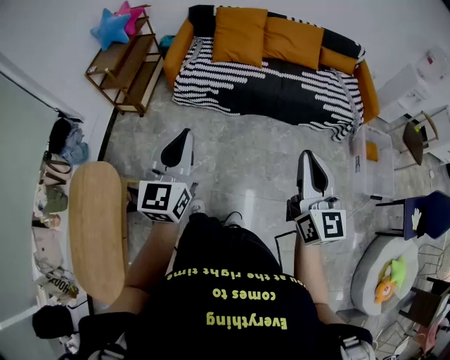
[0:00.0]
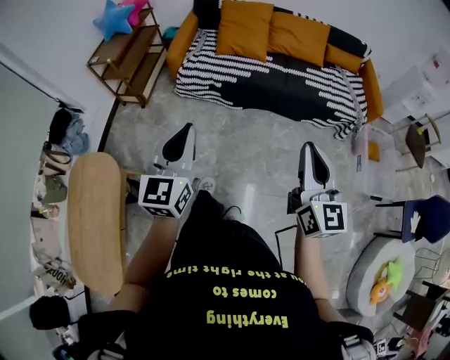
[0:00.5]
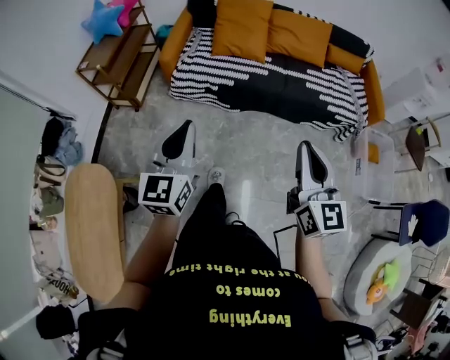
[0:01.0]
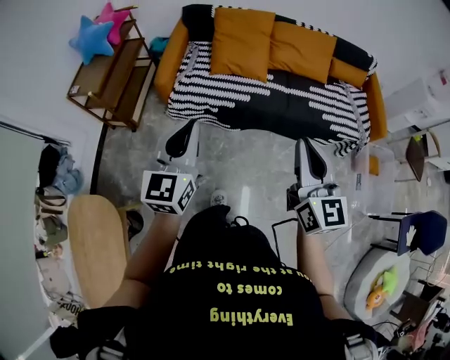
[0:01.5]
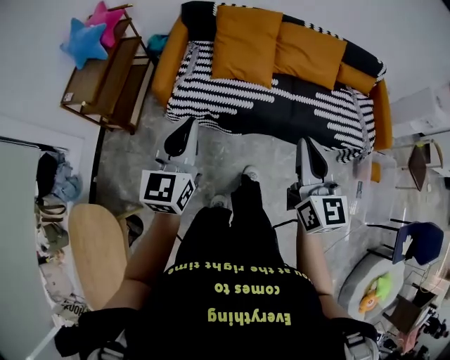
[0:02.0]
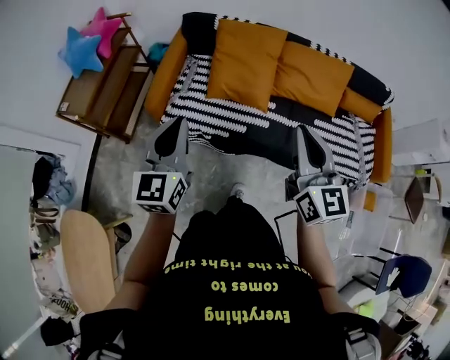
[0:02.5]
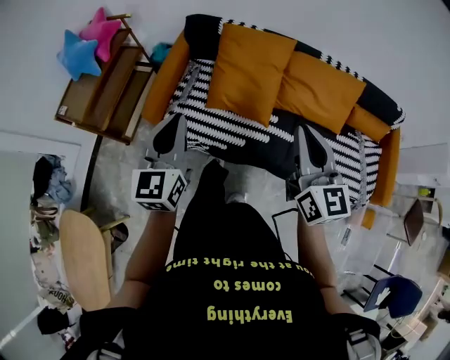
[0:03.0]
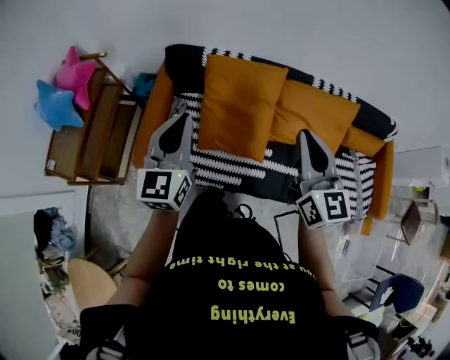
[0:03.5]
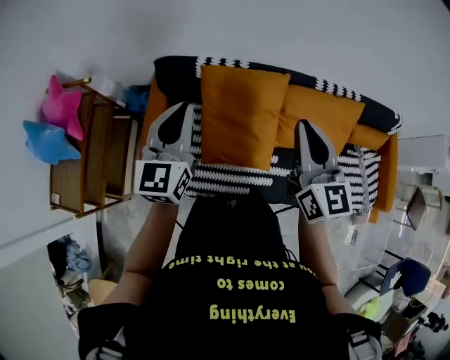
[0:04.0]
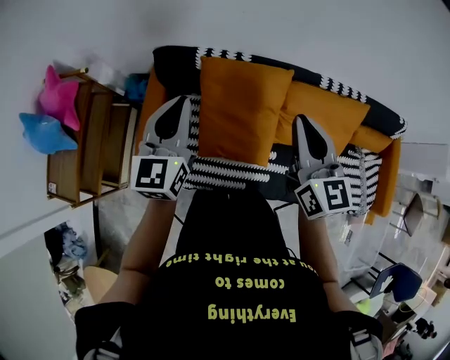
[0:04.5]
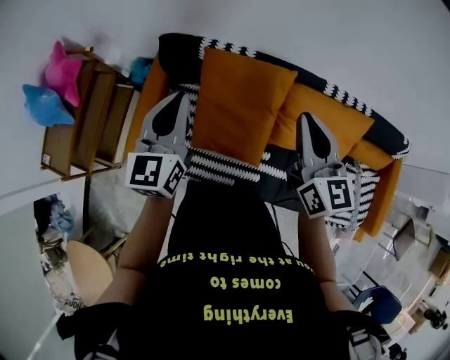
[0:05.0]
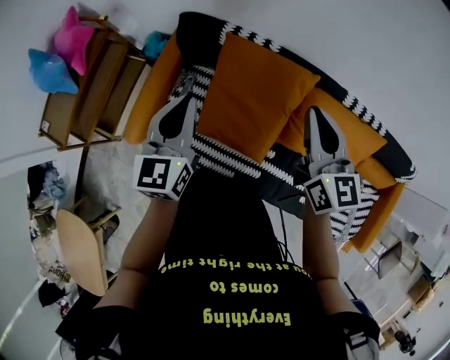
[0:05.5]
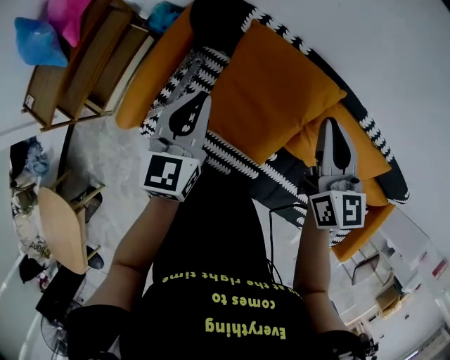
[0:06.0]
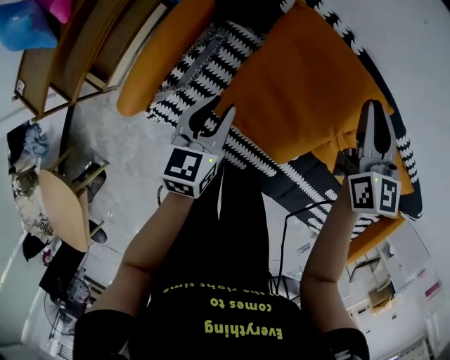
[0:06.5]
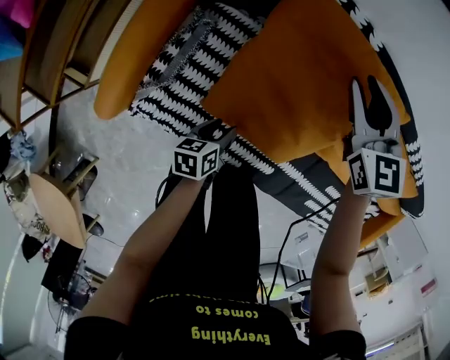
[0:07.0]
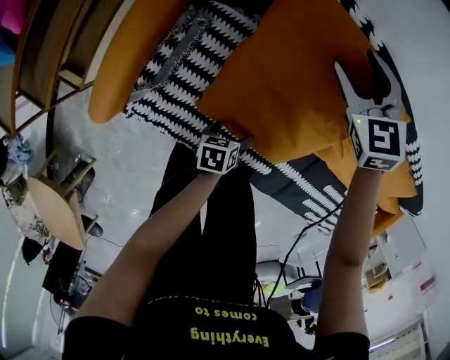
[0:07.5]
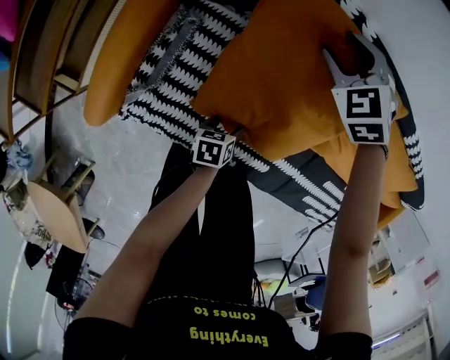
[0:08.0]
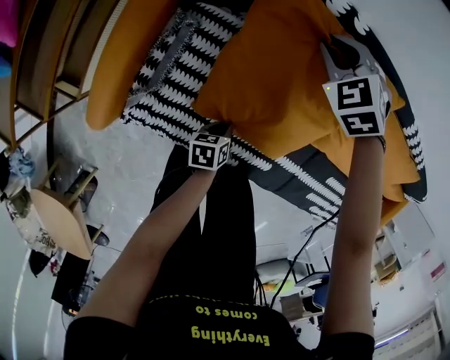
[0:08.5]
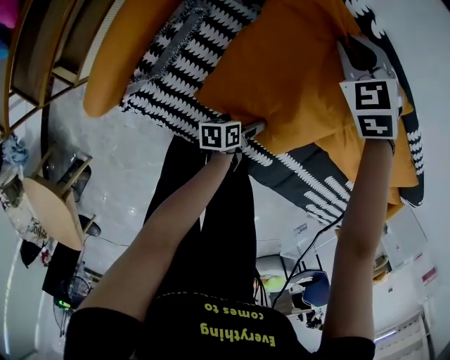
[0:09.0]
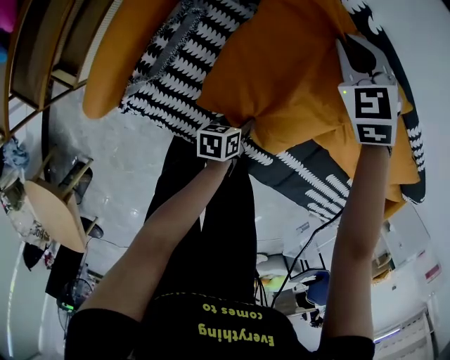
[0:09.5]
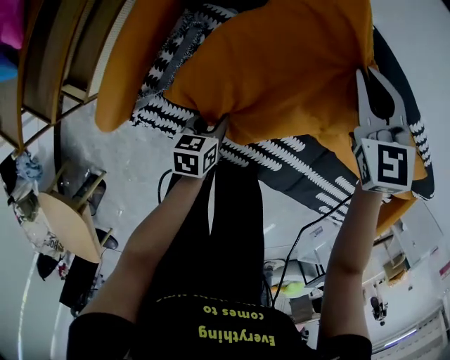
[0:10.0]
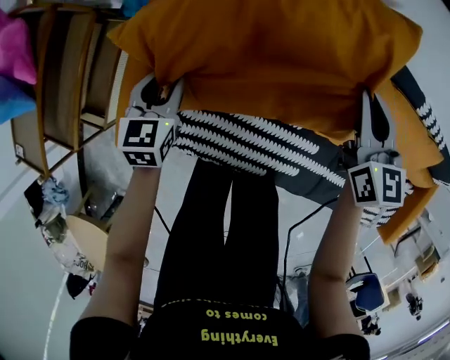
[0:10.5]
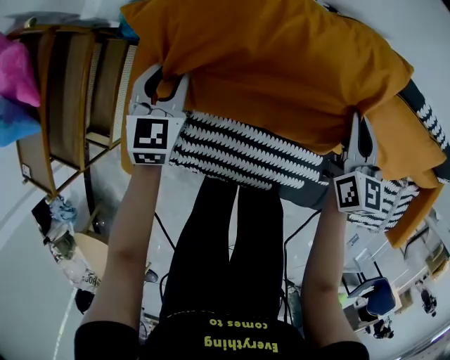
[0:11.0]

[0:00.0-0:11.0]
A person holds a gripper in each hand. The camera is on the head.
0:00.0 to 0:02.0: Both grippers are carried forward, roughly 40 cm.
0:02.0 to 0:03.5: Both grippers are carried forward, about 50 cm.
0:03.5 to 0:05.5: The left gripper goes roughly 15 cm forward and downward, while the right gripper is displaced forward by some 20 cm.
0:05.5 to 0:07.5: The right gripper goes some 40 cm downward and forward, angles its fingers downward, by some 30 degrees, and opens up. The left gripper travels downward by roughly 50 cm, angles its fingers downward, by about 40 degrees, and opens up.
0:07.5 to 0:09.0: The right gripper turns by about 20 degrees, and closes its fingers. The left gripper rotates approximately 20 degrees, and closes, then reopens.
0:09.0 to 0:11.0: The left gripper travels to the left, upward and forward by some 40 cm, rolls clockwise, seen from behind, by approximately 80 degrees, and closes its fingers. The right gripper moves to the right, backward and upward, some 15 cm, and twists approximately 60 degrees clockwise, seen from behind.

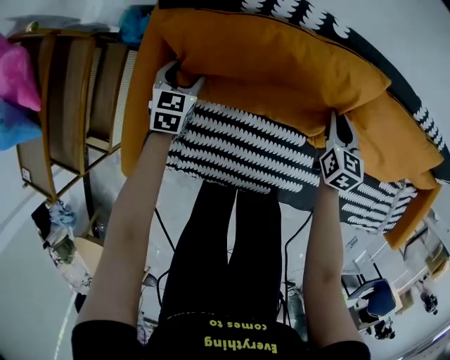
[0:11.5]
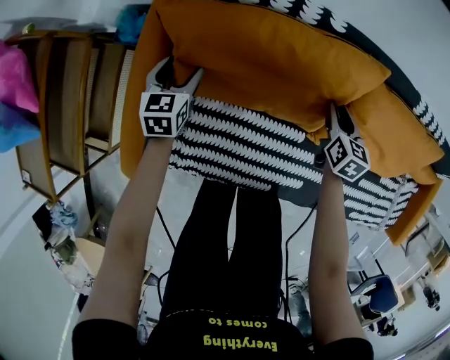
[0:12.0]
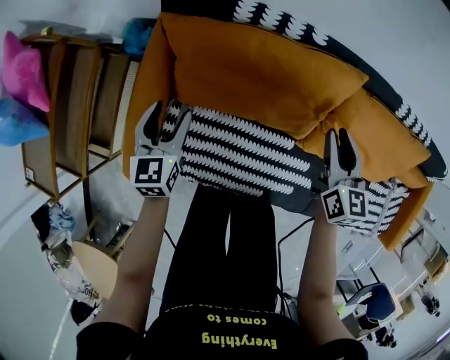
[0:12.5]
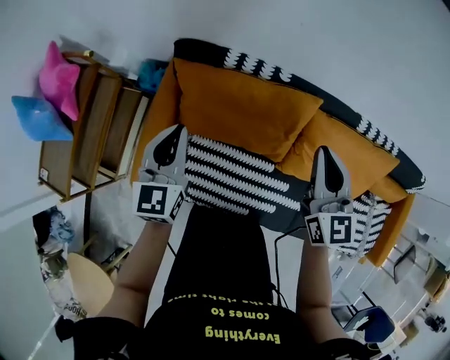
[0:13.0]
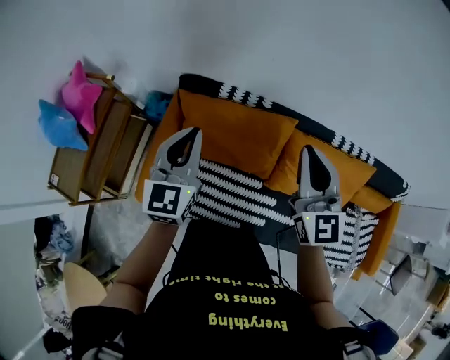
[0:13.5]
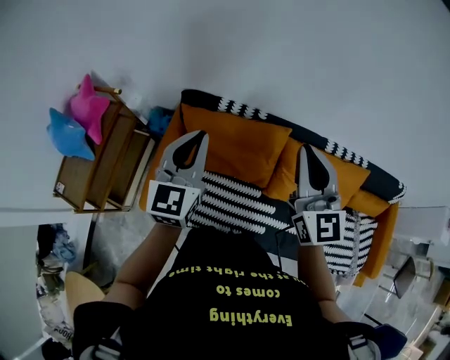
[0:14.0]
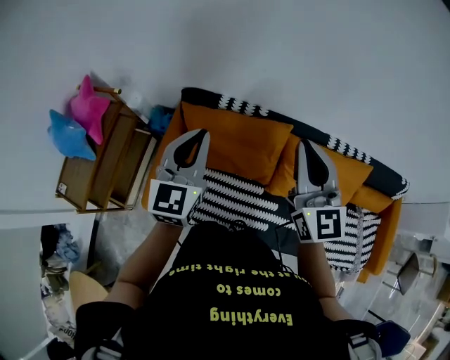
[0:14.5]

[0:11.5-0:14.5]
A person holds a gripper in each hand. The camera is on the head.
0:11.5 to 0:13.0: Both grippers move upward, about 35 cm. The right gripper swivels roughly 30 degrees. The left gripper changes its angle by roughly 30 degrees, and closes.
0:13.0 to 0:14.5: The two grippers go approximately 20 cm upward.

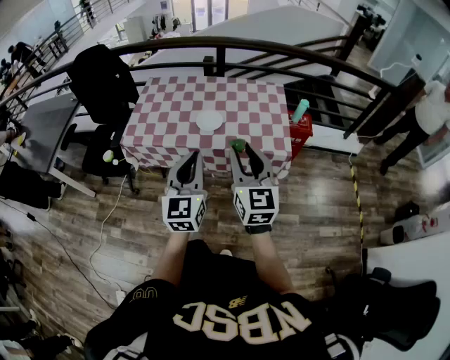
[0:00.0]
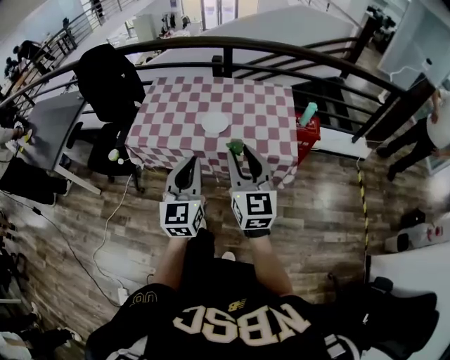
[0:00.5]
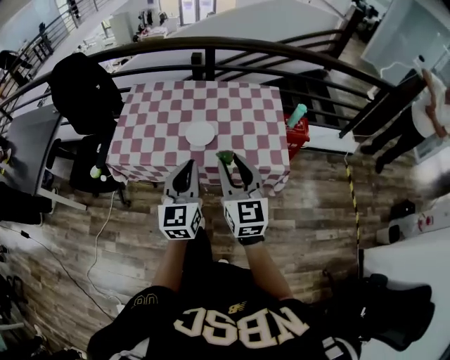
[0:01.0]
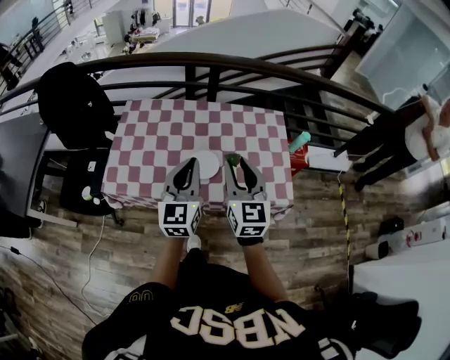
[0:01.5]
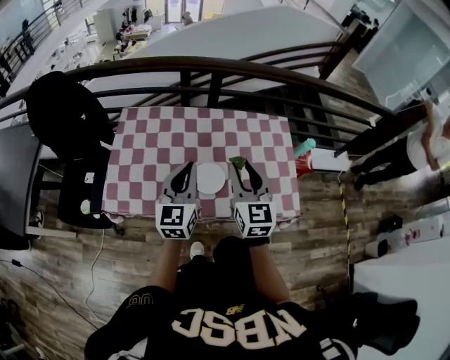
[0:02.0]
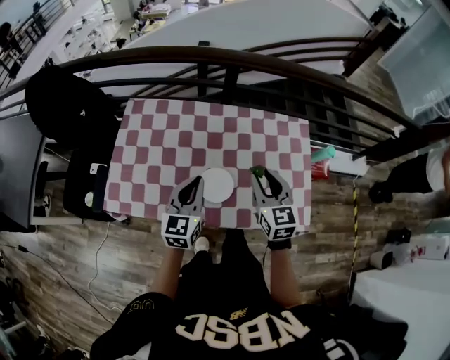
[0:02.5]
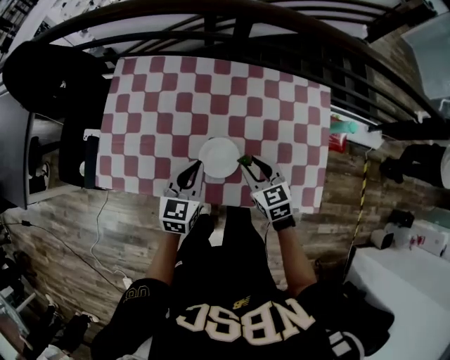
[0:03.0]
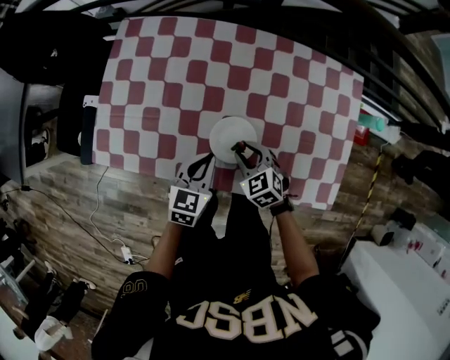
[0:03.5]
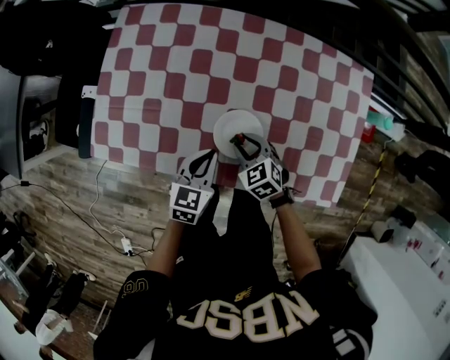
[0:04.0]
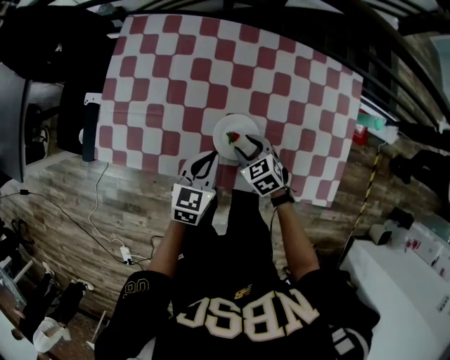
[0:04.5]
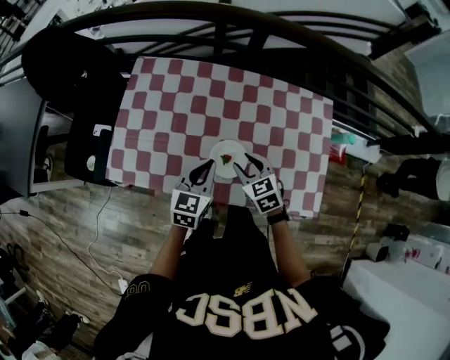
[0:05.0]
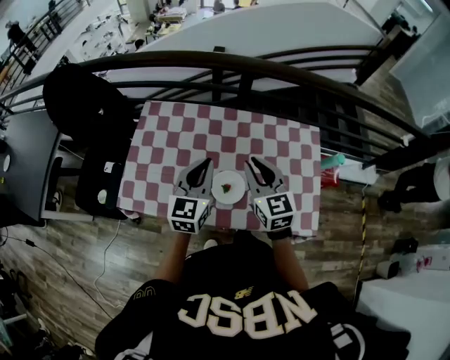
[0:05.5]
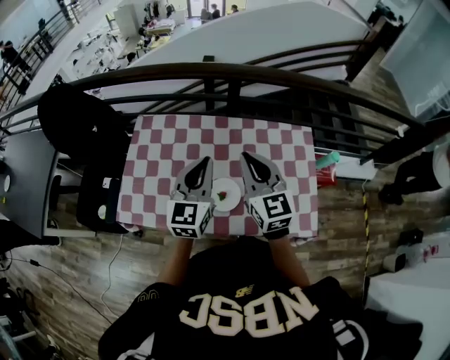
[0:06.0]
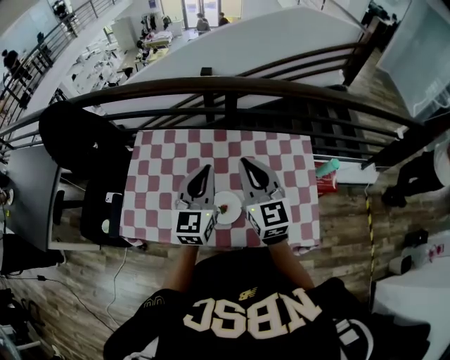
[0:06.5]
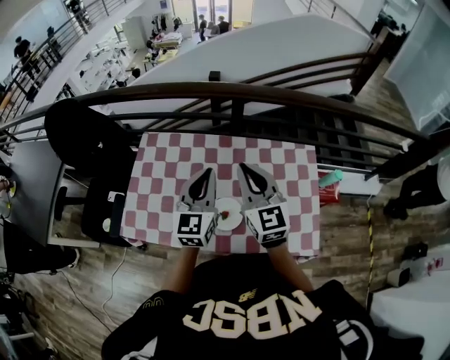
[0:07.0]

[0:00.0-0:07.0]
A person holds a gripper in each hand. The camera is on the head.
0:00.0 to 0:02.0: Both grippers travel together forward, approximately 35 cm.
0:02.0 to 0:03.5: The two grippers go roughly 30 cm downward. The left gripper tilts its fingers roughly 30 degrees downward, while the right gripper angles its fingers downward, by roughly 40 degrees.
0:03.5 to 0:05.0: Both grippers travel together upward, about 10 cm.
0:05.0 to 0:07.0: The left gripper goes approximately 20 cm upward and forward, and changes its angle by some 20 degrees, while the right gripper heads upward, covering approximately 30 cm, tilts its fingers about 40 degrees upward, and closes its fingers.

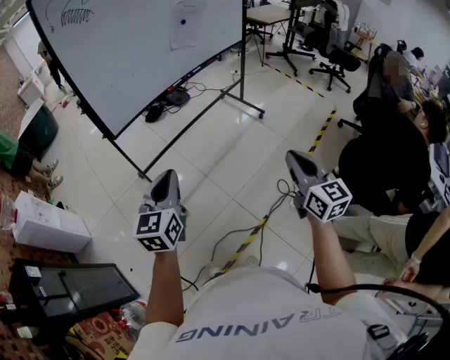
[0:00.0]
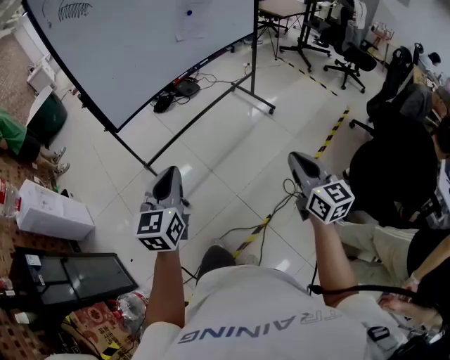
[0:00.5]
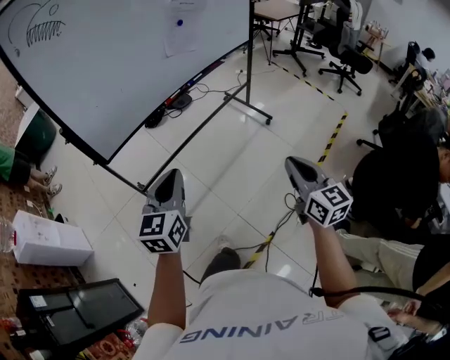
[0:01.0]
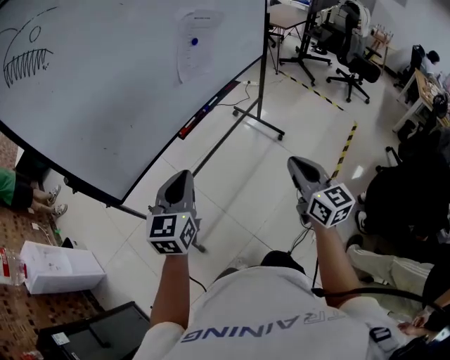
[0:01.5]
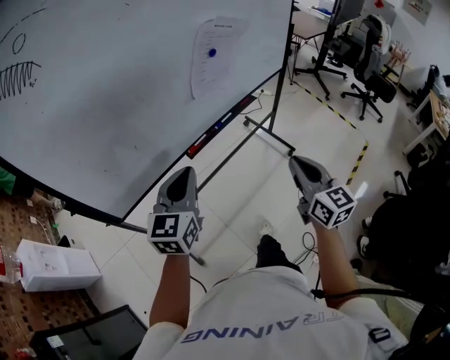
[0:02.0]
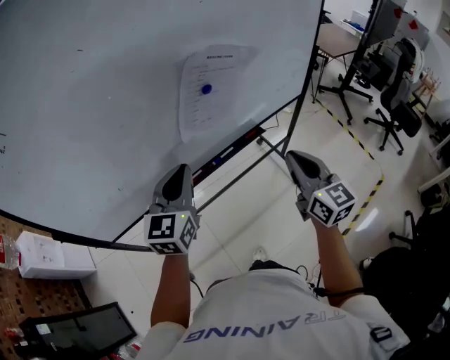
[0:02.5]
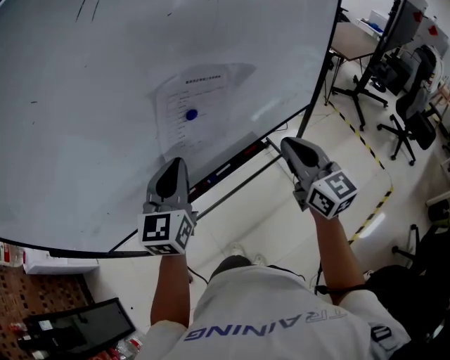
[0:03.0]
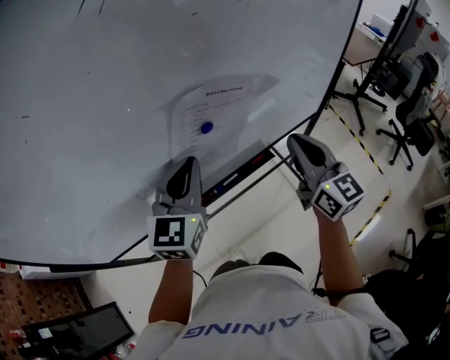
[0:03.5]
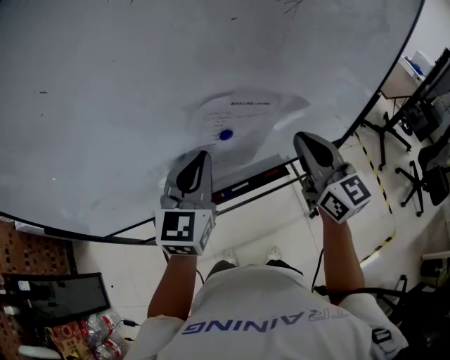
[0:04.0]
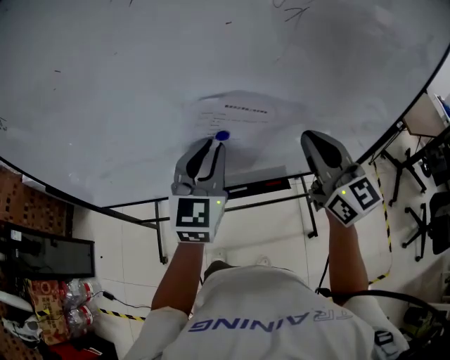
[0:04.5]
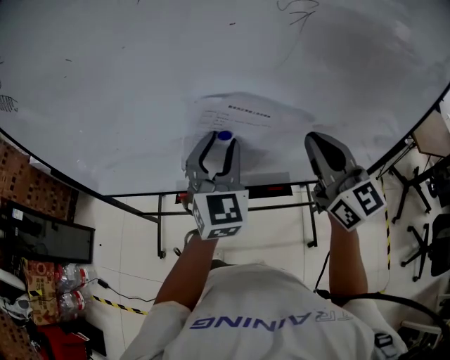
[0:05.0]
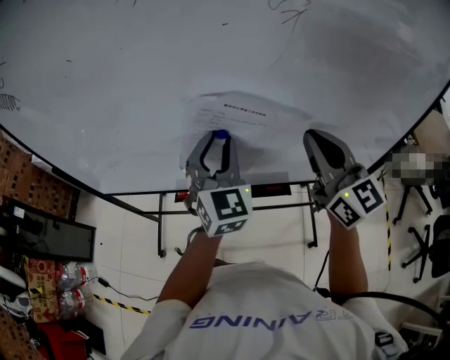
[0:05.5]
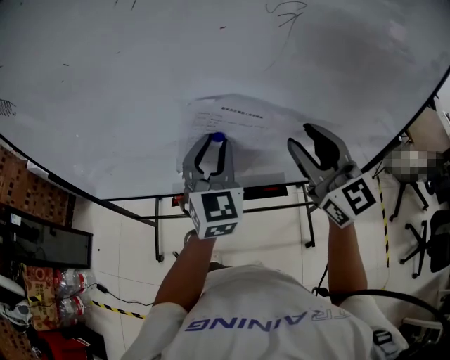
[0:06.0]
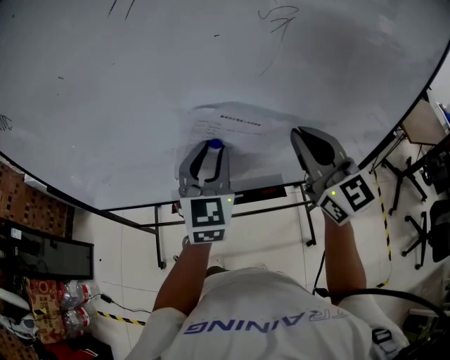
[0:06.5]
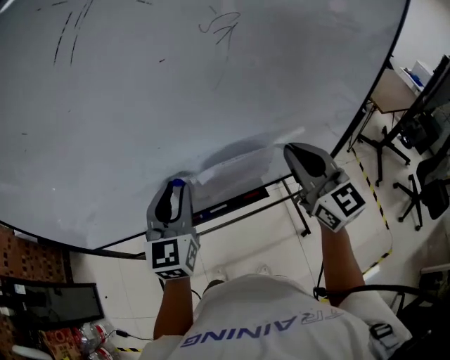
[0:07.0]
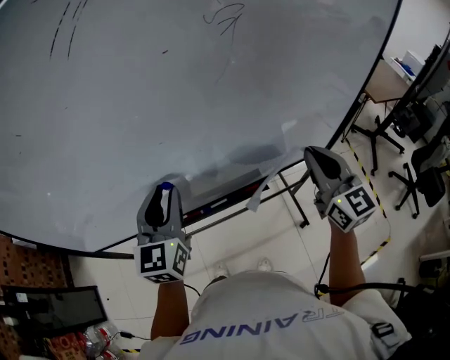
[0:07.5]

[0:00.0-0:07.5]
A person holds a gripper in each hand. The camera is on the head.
0:00.0 to 0:02.0: The pair of grippers is taken forward, approximately 50 cm.
0:02.0 to 0:04.0: The left gripper moves roughly 35 cm, and swivels some 20 degrees, while the right gripper moves about 40 cm, and swivels roughly 30 degrees.
0:04.0 to 0:05.5: The right gripper shifts by roughly 5 cm. Meanwhile the left gripper moves roughly 5 cm, turns by some 40 degrees, and opens its fingers.
0:05.5 to 0:07.5: The right gripper heads to the right, backward and downward, covering about 10 cm, turns by some 30 degrees, and opens, then closes again; the left gripper moves to the left, roughly 5 cm, and swivels roughly 30 degrees.
